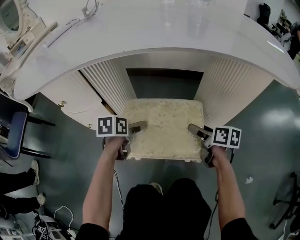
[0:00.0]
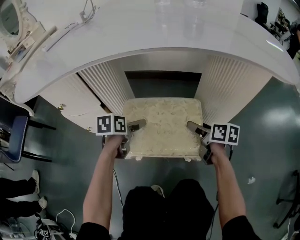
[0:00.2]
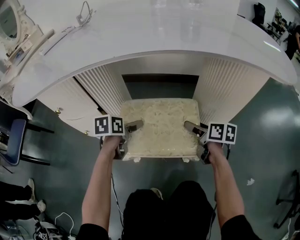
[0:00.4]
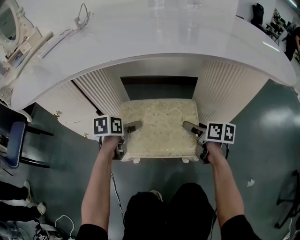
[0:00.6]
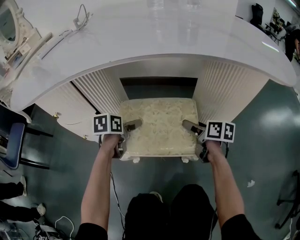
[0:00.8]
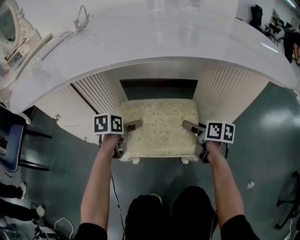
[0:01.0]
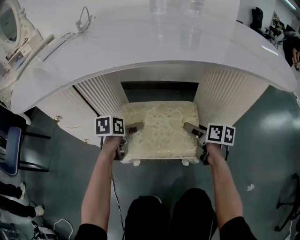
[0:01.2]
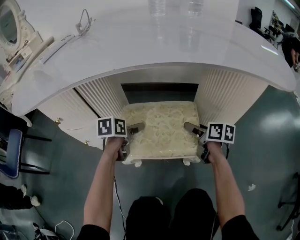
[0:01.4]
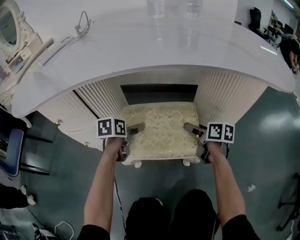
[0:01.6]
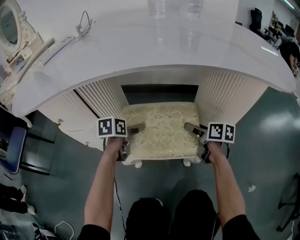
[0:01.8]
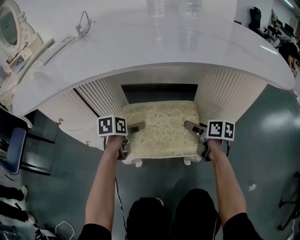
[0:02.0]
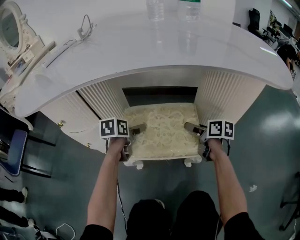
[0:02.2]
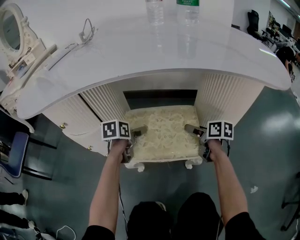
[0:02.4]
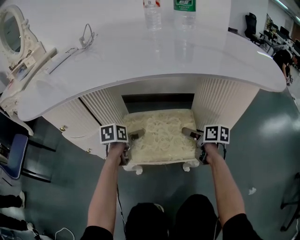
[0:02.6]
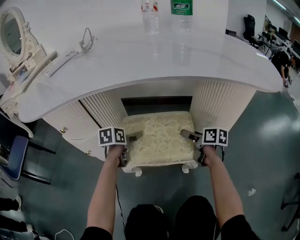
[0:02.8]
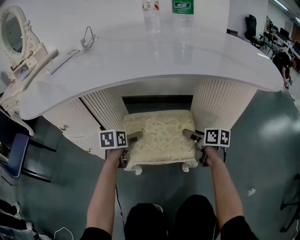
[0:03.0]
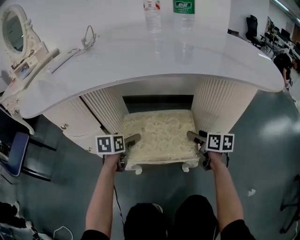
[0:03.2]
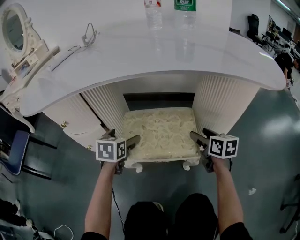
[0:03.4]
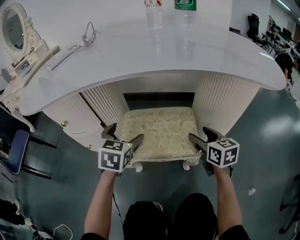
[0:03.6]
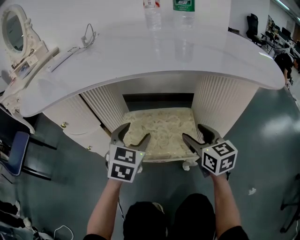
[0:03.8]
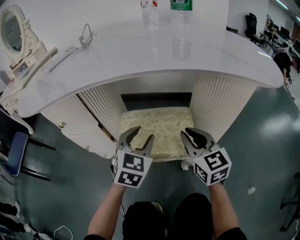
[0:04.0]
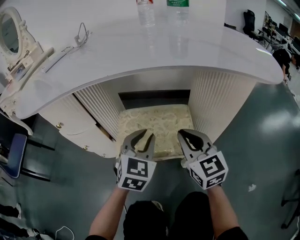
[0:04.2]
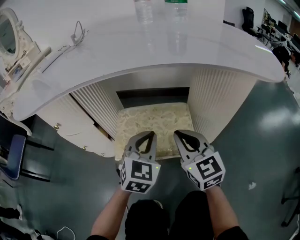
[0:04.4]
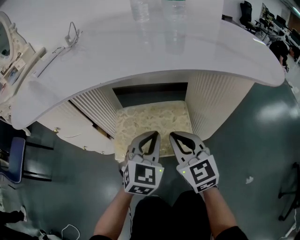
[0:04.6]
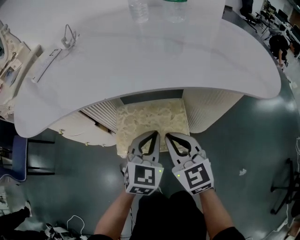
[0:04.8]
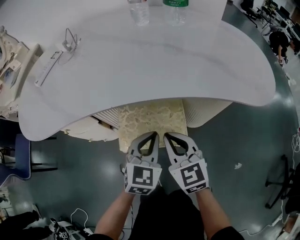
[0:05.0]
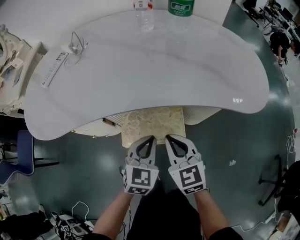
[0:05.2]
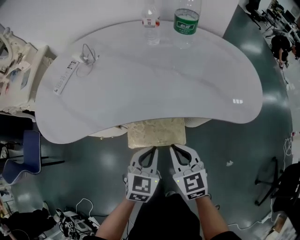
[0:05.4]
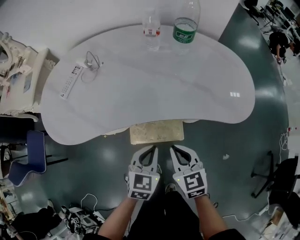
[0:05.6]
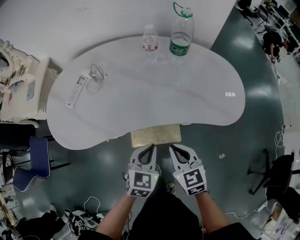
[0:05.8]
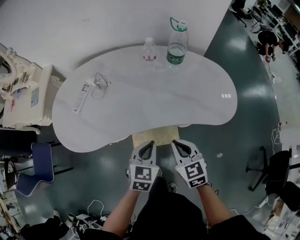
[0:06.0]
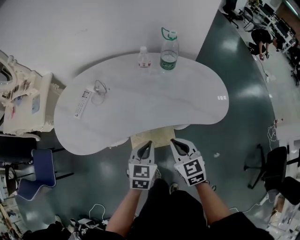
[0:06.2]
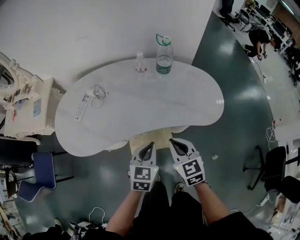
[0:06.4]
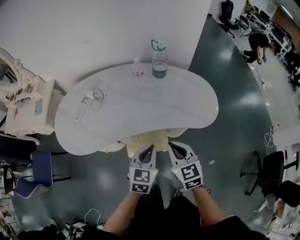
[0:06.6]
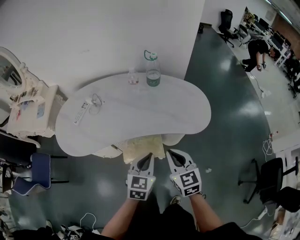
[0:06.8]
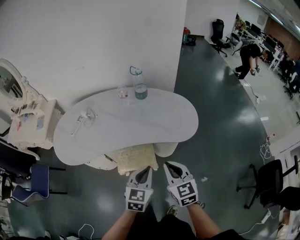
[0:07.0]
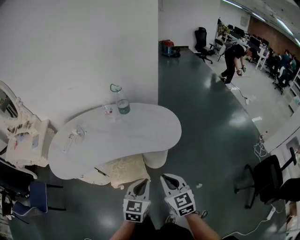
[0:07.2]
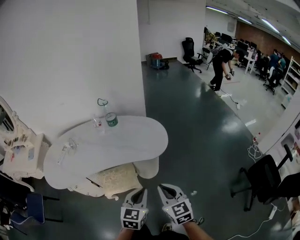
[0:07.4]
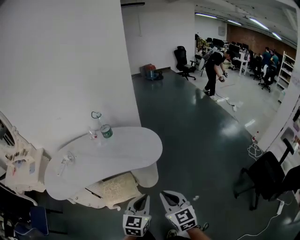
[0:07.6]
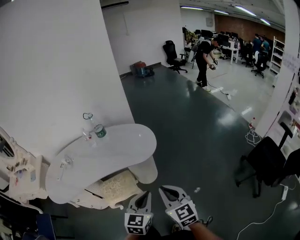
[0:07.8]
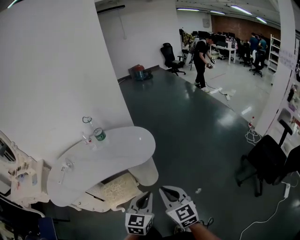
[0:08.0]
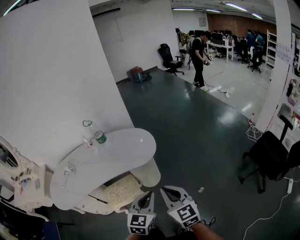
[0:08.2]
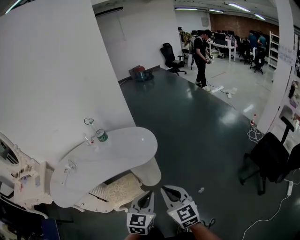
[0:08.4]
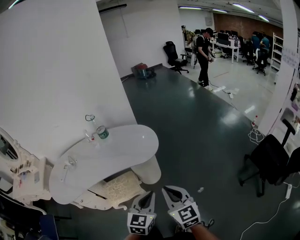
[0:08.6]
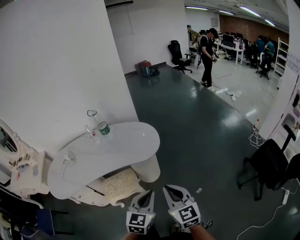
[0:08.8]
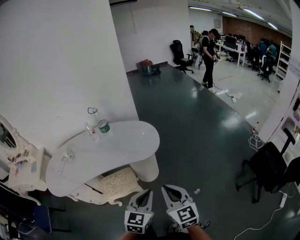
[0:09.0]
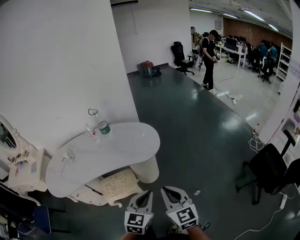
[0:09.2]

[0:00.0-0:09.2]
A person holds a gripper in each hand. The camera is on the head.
0.0 to 1.6 s: Both grippers travel together forward, about 5 cm.
1.6 to 3.0 s: The grippers stay close to where they were, moving slightly.
3.0 to 4.6 s: The right gripper shifts some 20 cm upward, backward and to the left, rotates around the line of its fingers by some 50 degrees, counterclockwise from behind, and closes up. Meanwhile the left gripper shifts roughly 20 cm to the right, backward and upward, rotates around the line of its fingers by approximately 50 degrees, clockwise from behind, and closes its fingers.
4.6 to 6.2 s: Both grippers move upward, about 35 cm. The left gripper swivels about 20 degrees. Meanwhile the right gripper turns by some 20 degrees.
6.2 to 7.6 s: The grippers both shift to the right and backward by roughly 35 cm. The right gripper swivels about 20 degrees.
7.6 to 9.2 s: The grippers make only small movements.

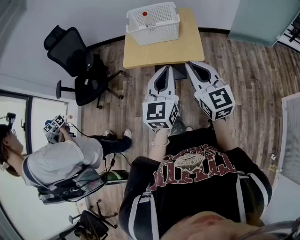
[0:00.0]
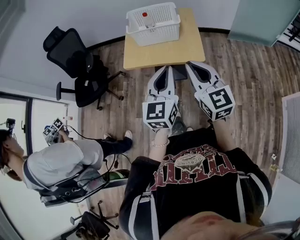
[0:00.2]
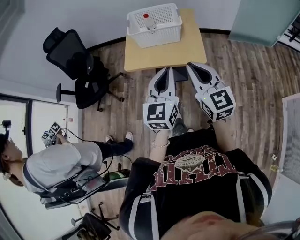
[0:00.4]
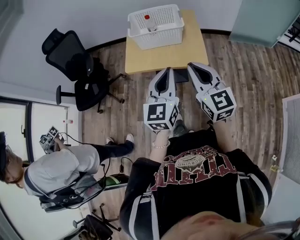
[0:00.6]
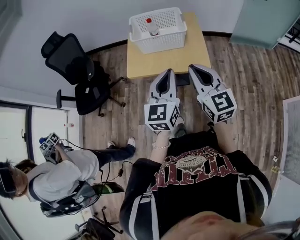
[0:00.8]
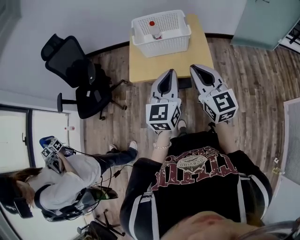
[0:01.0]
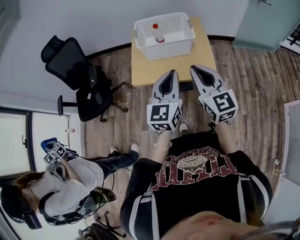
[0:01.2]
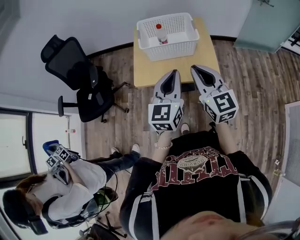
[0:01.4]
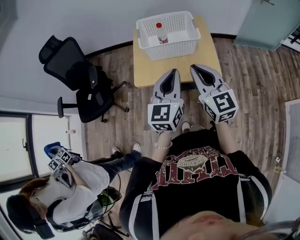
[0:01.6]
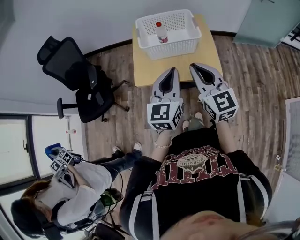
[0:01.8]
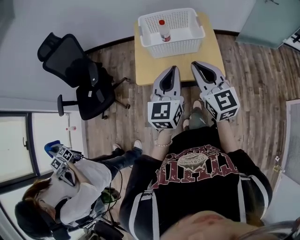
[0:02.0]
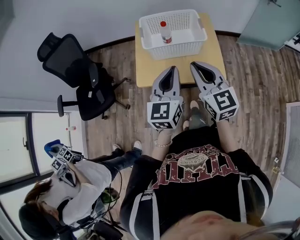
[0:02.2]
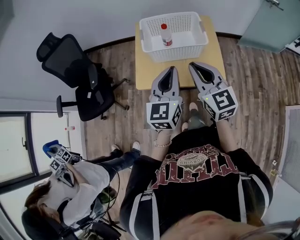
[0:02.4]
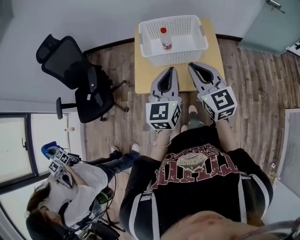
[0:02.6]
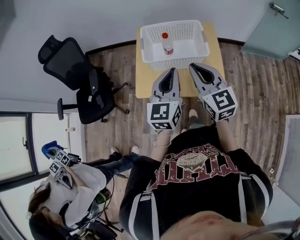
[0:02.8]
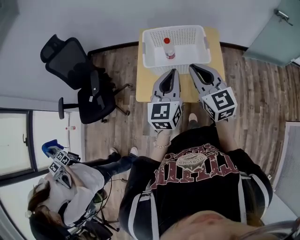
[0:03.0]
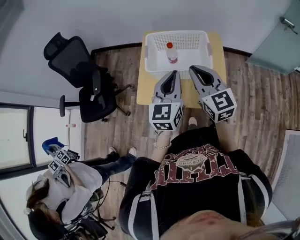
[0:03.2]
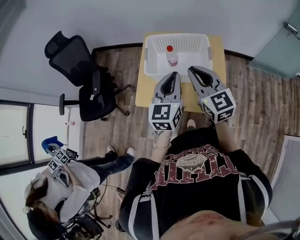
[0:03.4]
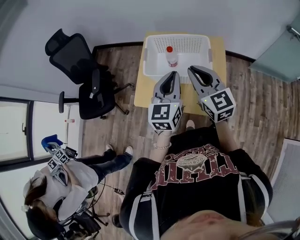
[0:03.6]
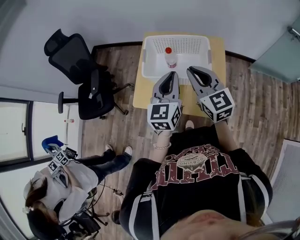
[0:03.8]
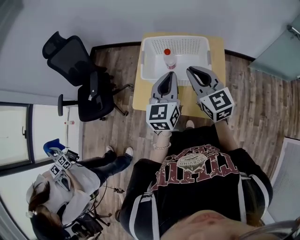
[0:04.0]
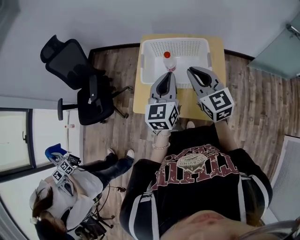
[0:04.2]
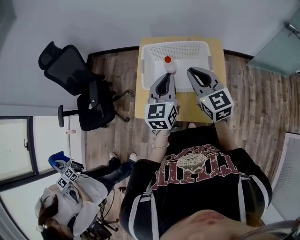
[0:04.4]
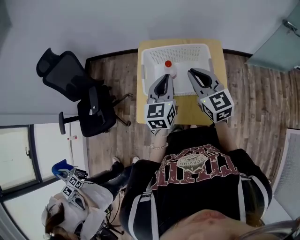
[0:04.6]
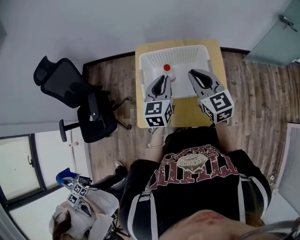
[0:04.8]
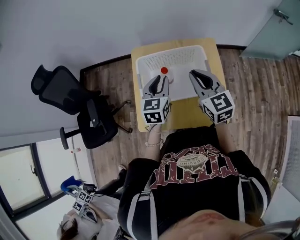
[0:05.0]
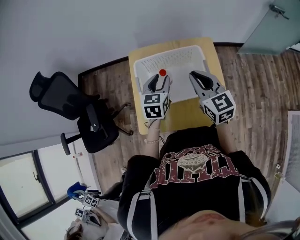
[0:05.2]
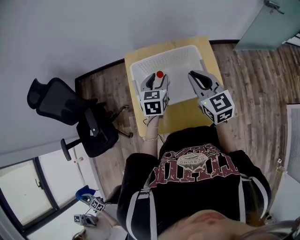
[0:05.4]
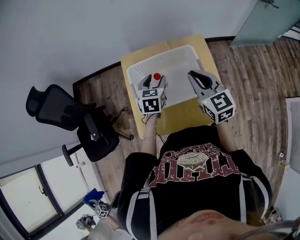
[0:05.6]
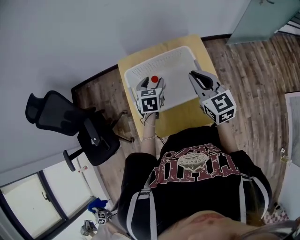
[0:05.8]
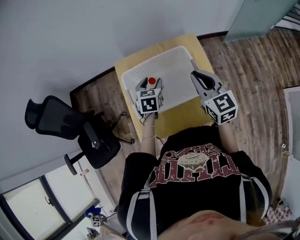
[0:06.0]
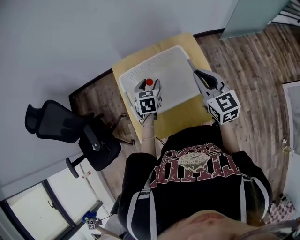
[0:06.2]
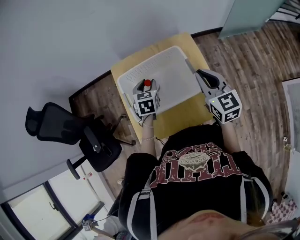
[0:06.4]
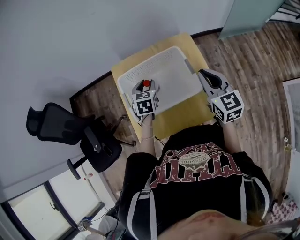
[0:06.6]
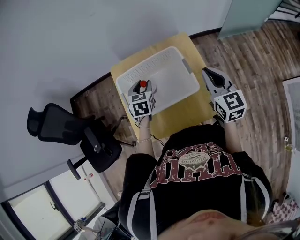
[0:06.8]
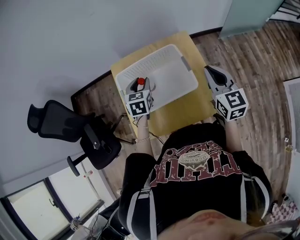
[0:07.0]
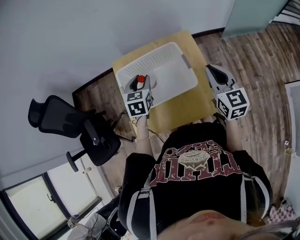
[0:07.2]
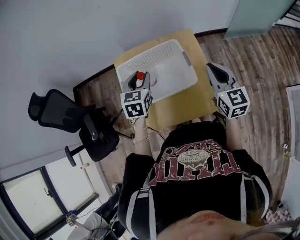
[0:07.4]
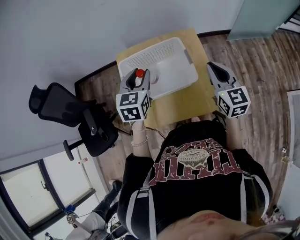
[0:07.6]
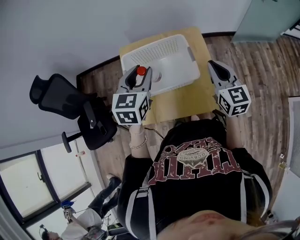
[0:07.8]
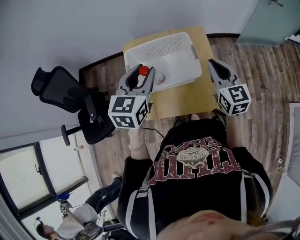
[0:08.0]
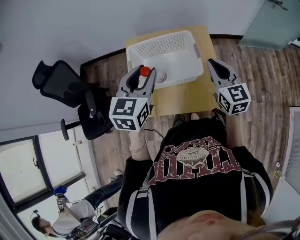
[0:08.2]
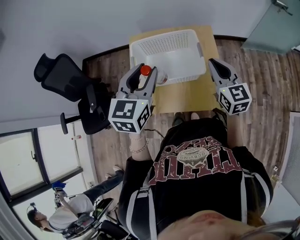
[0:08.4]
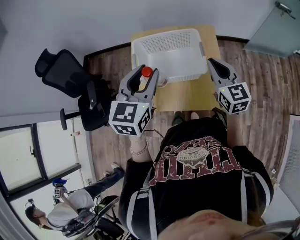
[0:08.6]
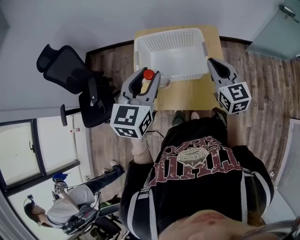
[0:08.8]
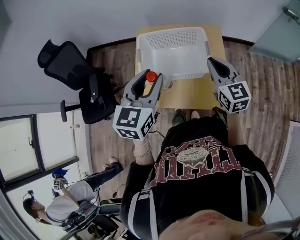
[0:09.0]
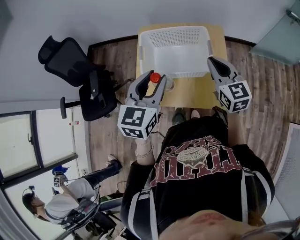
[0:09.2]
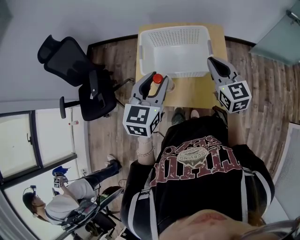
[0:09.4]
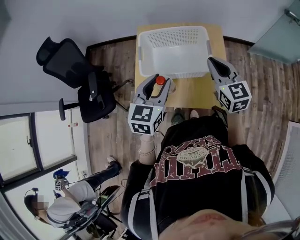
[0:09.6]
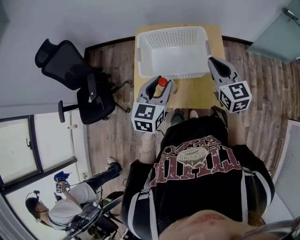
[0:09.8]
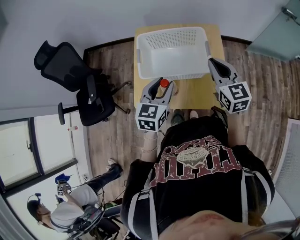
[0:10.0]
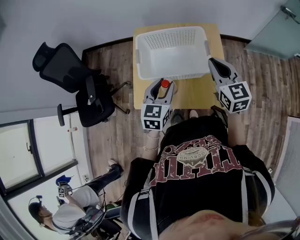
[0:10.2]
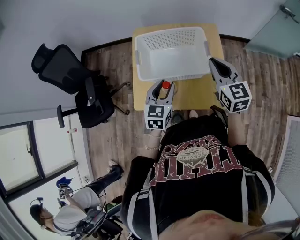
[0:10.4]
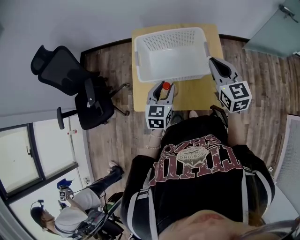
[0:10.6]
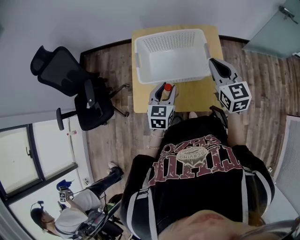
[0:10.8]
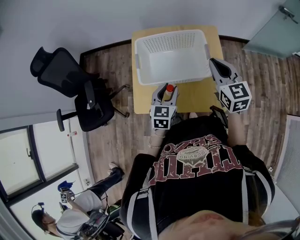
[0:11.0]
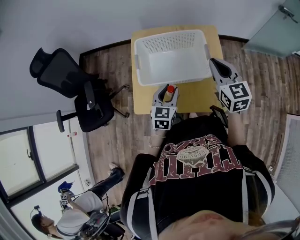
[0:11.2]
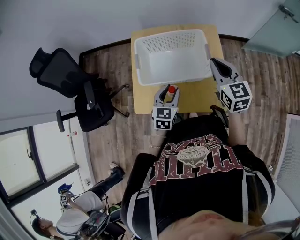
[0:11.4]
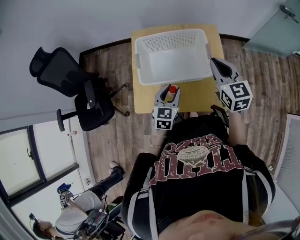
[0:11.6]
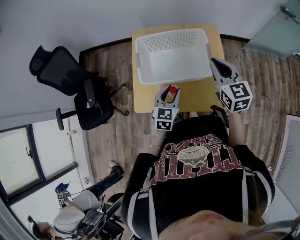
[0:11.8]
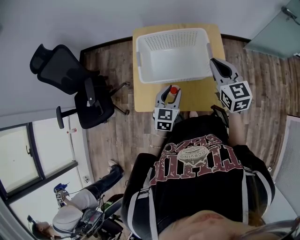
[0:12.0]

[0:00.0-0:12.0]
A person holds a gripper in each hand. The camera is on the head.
0.0 to 1.6 s: Both grippers travel together forward and to the left, some 20 cm.
1.6 to 3.0 s: Both grippers travel together forward, about 15 cm.
3.0 to 4.4 s: The grippers both shift forward by roughly 15 cm.
4.4 to 6.0 s: The right gripper is displaced to the right and forward by roughly 10 cm, and swivels approximately 20 degrees, while the left gripper shifts roughly 20 cm downward and forward, points its fingers about 30 degrees further downward, and opens.
6.0 to 7.6 s: The left gripper travels upward and backward by roughly 15 cm. The right gripper is displaced to the right and backward by some 10 cm.
7.6 to 9.0 s: The left gripper heads backward and upward, covering some 15 cm; the right gripper goes roughly 10 cm to the left.
9.0 to 10.4 s: The left gripper shifts about 15 cm downward.
10.4 to 12.0 s: The left gripper shifts some 5 cm downward.

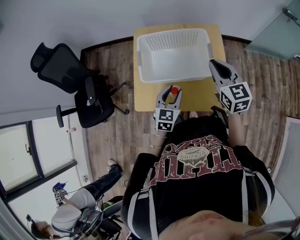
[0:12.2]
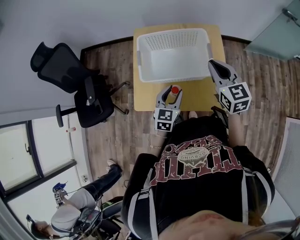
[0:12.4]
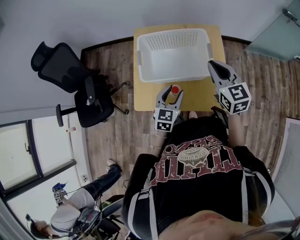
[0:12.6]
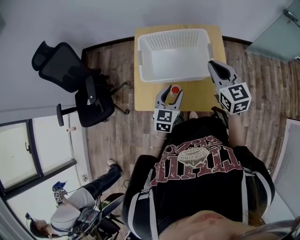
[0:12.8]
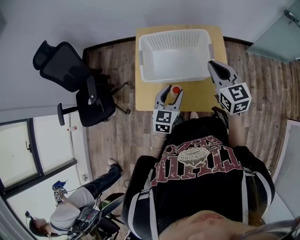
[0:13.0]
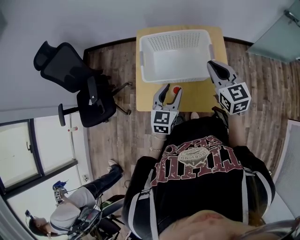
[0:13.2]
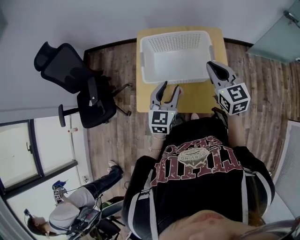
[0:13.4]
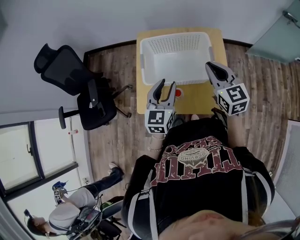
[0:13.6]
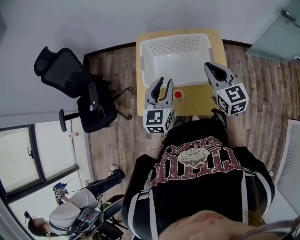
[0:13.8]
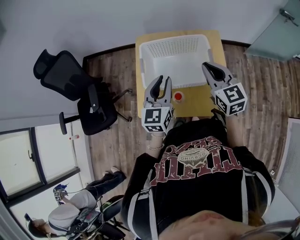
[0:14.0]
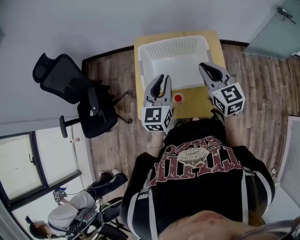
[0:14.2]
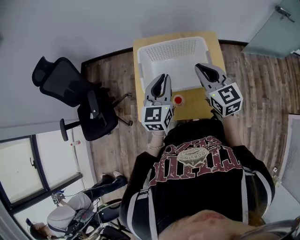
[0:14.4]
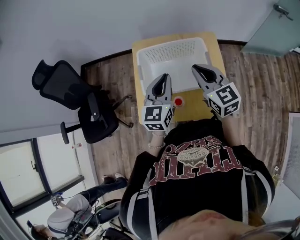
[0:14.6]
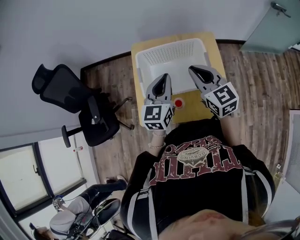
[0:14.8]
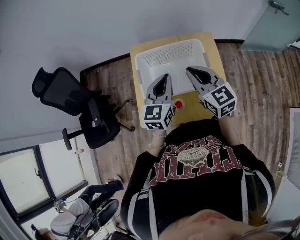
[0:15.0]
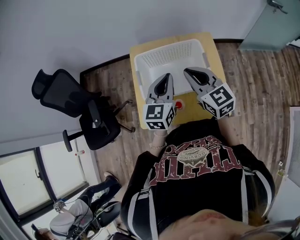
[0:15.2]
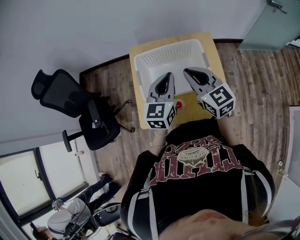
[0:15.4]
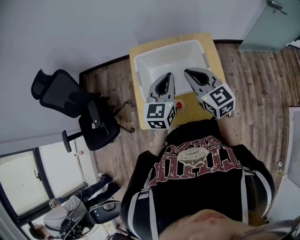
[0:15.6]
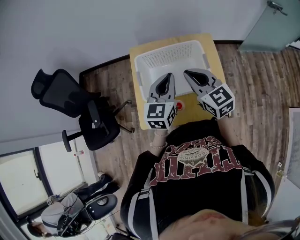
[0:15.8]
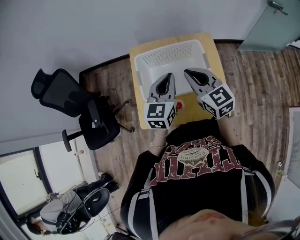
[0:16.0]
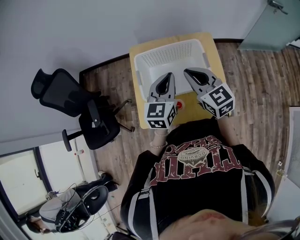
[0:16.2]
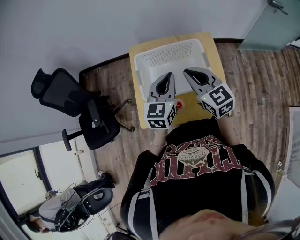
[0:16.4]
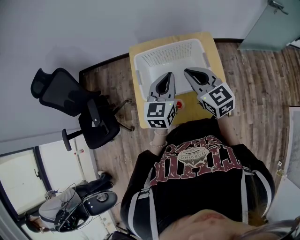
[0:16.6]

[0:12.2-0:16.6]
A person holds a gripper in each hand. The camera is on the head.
12.2 to 13.6 s: The left gripper goes about 10 cm upward.
13.6 to 15.2 s: The right gripper heads to the left, covering some 5 cm. The left gripper moves forward, approximately 5 cm, and closes up.
15.2 to 16.6 s: Both grippers stay about where they are.
